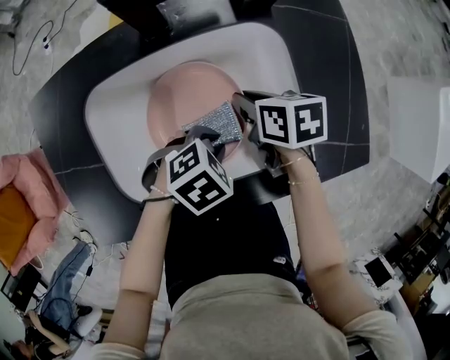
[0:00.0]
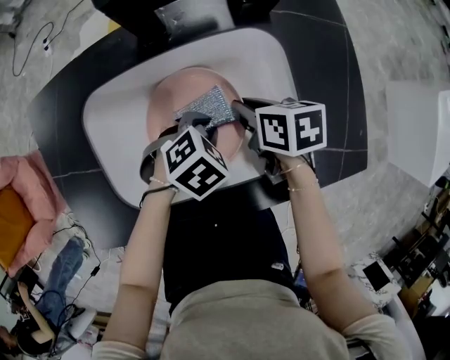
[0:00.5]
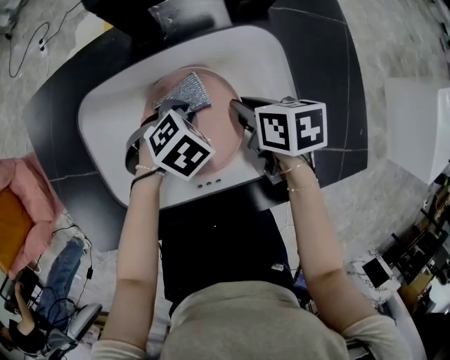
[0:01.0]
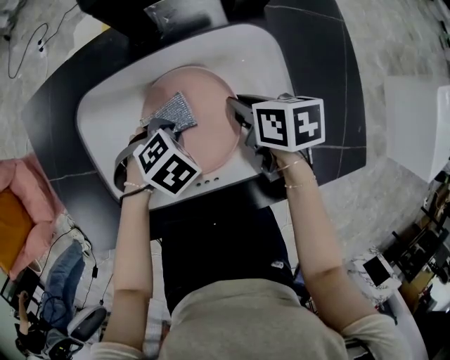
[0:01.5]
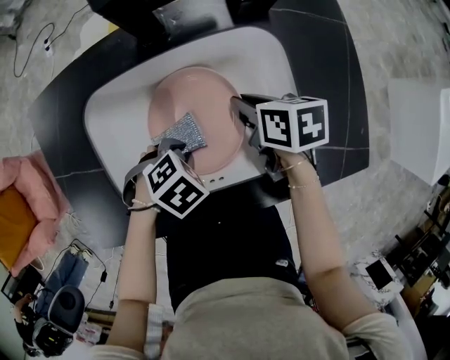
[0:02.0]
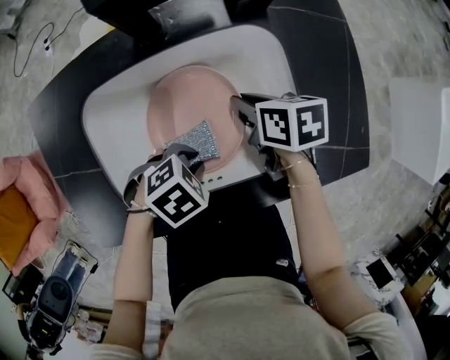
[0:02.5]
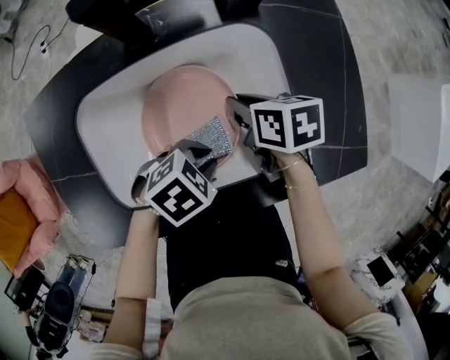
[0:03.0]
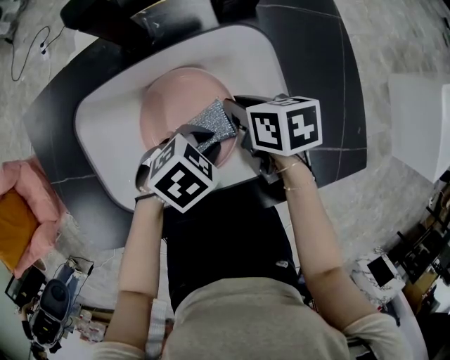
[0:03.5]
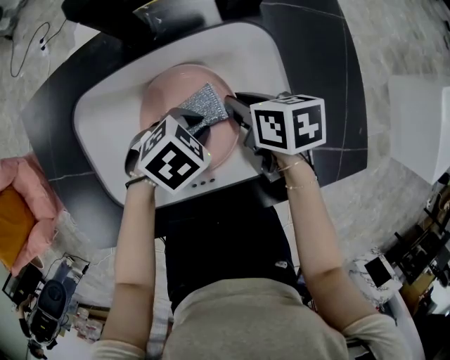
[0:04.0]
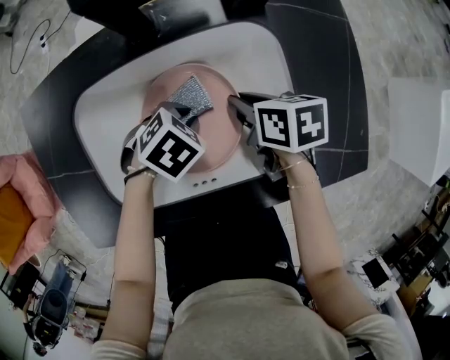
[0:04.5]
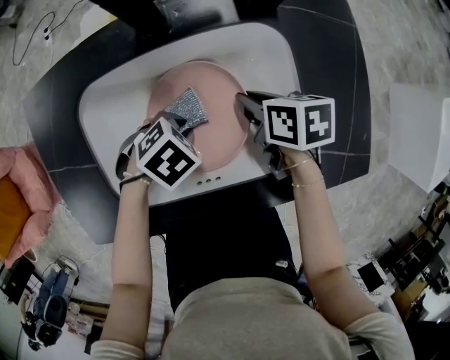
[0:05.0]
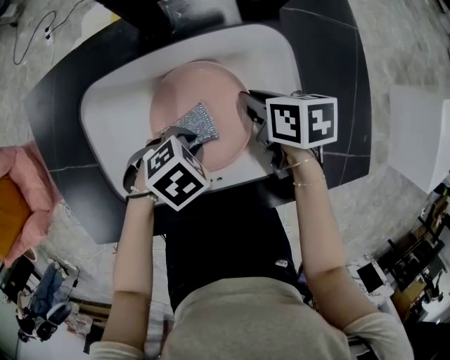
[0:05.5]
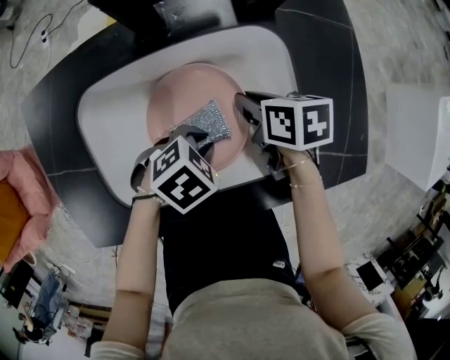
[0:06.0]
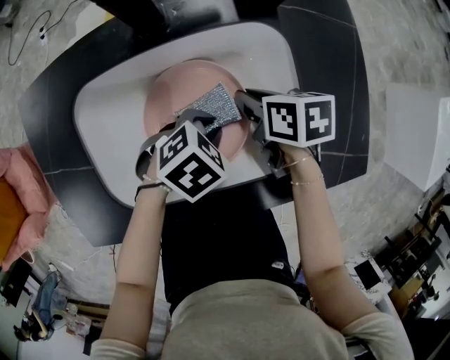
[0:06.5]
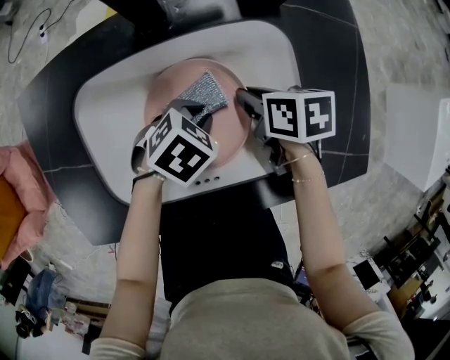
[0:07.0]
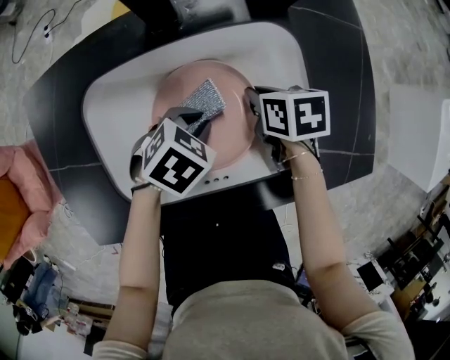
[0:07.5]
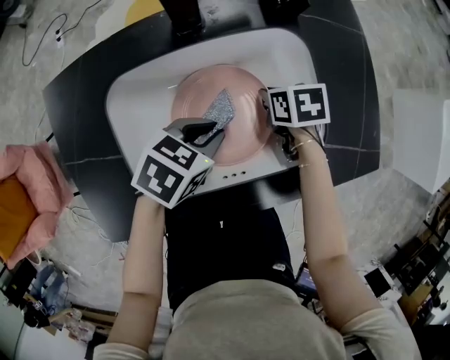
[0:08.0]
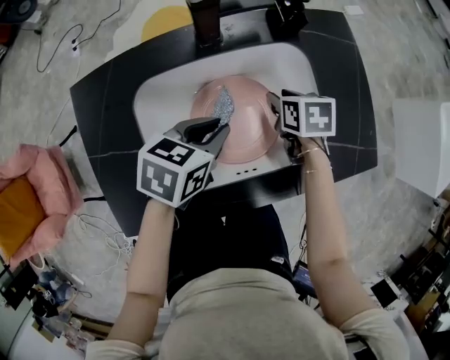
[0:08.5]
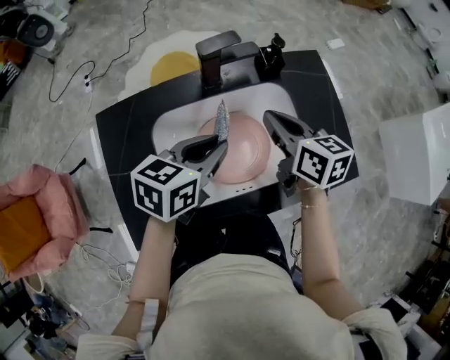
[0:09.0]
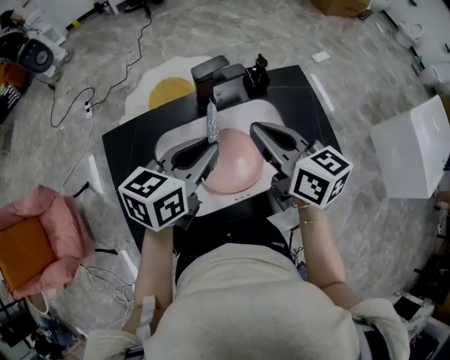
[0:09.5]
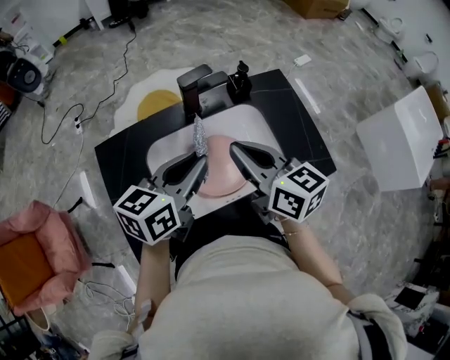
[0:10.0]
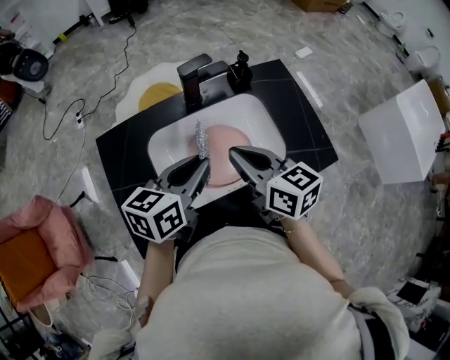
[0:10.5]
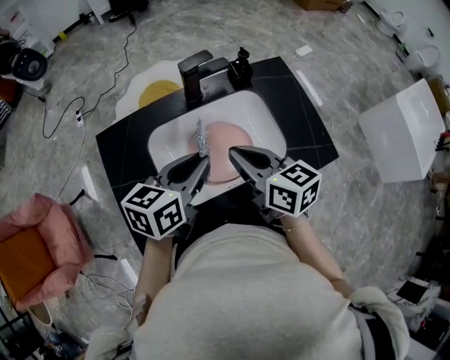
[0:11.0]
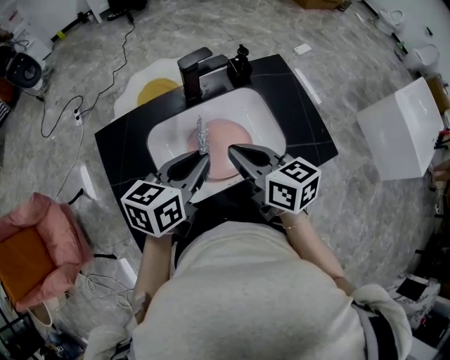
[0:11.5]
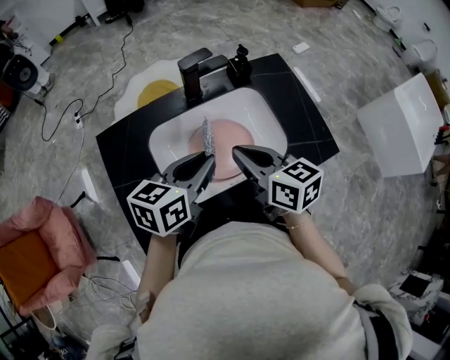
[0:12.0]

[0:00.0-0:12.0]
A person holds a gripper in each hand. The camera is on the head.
0:00.0 to 0:02.0: The left gripper ends up approximately 10 cm from where it was.
0:02.0 to 0:04.0: The left gripper ends up roughly 10 cm from where it was.
0:06.0 to 0:08.0: The left gripper is displaced upward by approximately 5 cm, and turns by some 20 degrees.
0:08.0 to 0:10.0: The grippers both shift upward by approximately 30 cm. The right gripper points its fingers approximately 50 degrees further upward, and opens, then closes again, while the left gripper tips its fingers upward by about 40 degrees.
0:10.0 to 0:12.0: The right gripper heads downward, covering about 5 cm. The left gripper moves approximately 5 cm.

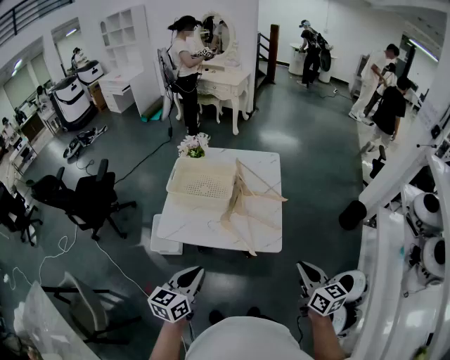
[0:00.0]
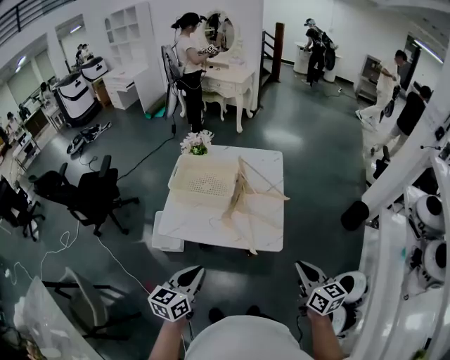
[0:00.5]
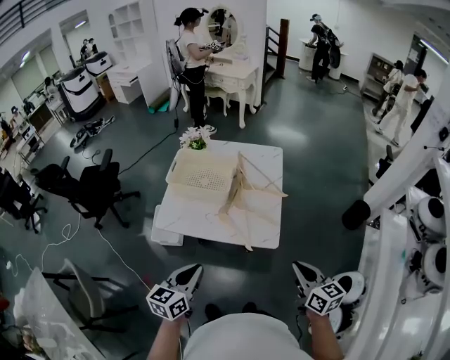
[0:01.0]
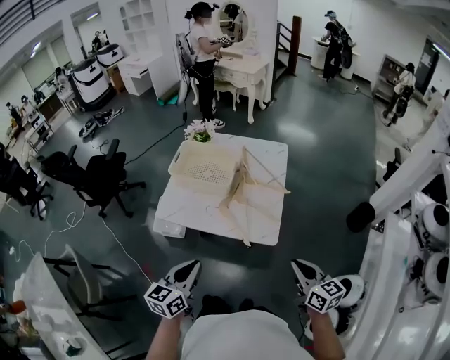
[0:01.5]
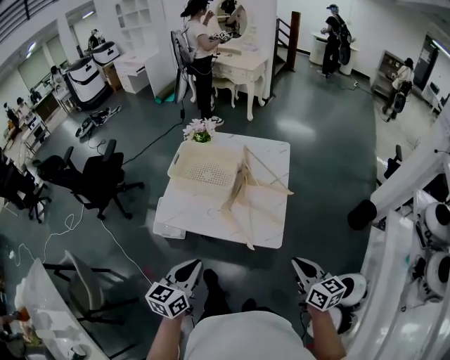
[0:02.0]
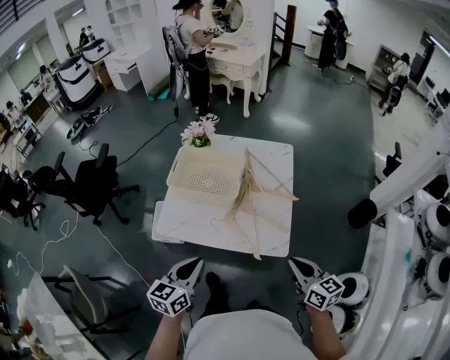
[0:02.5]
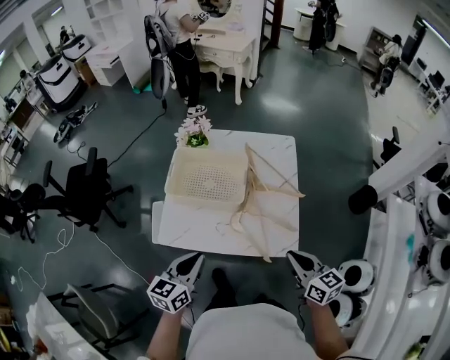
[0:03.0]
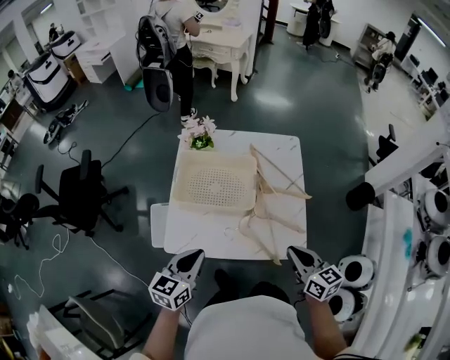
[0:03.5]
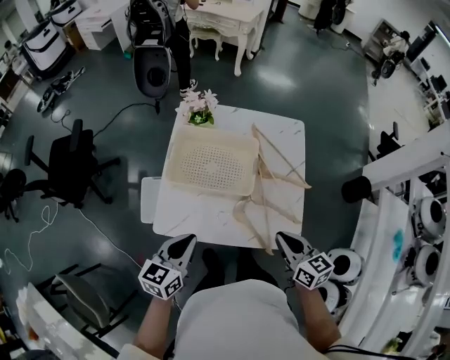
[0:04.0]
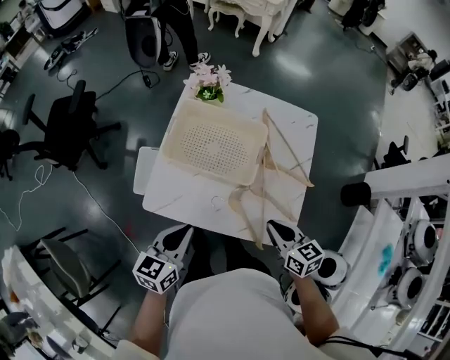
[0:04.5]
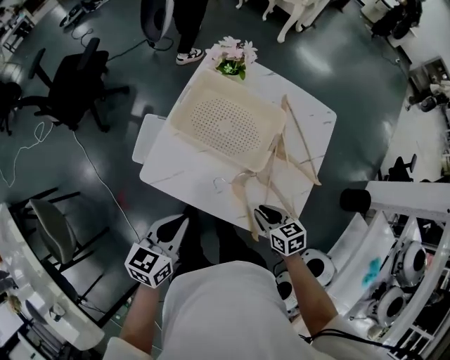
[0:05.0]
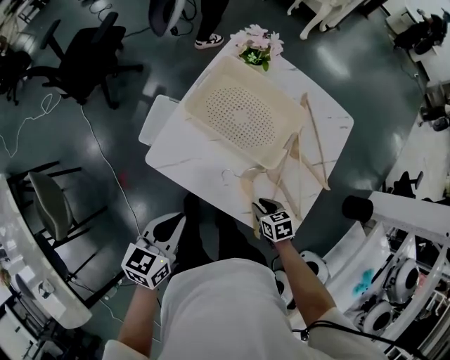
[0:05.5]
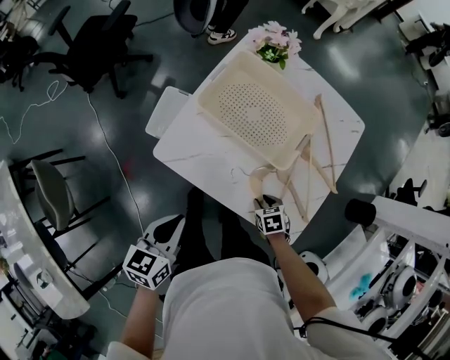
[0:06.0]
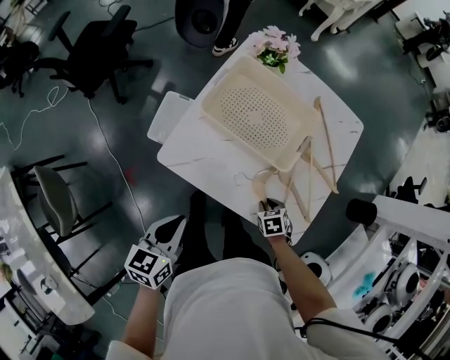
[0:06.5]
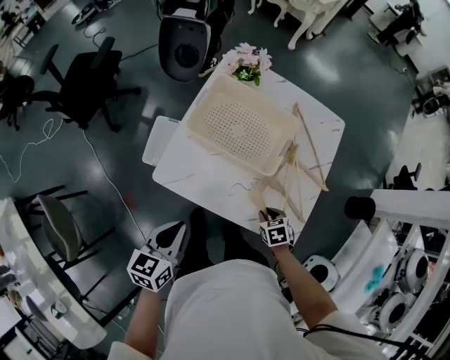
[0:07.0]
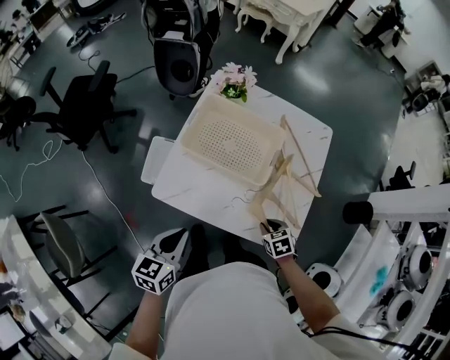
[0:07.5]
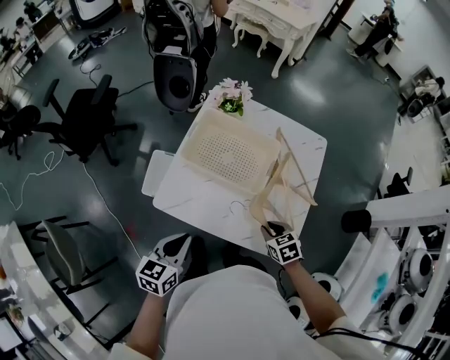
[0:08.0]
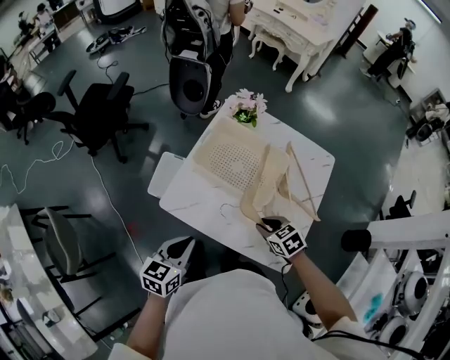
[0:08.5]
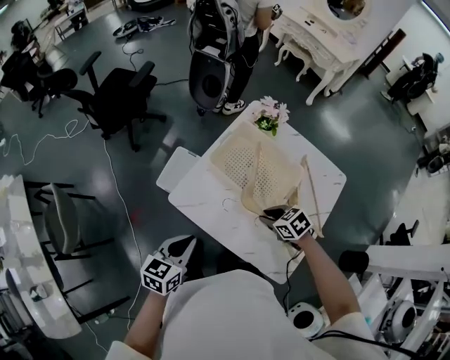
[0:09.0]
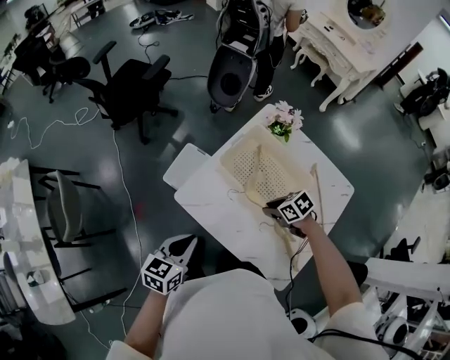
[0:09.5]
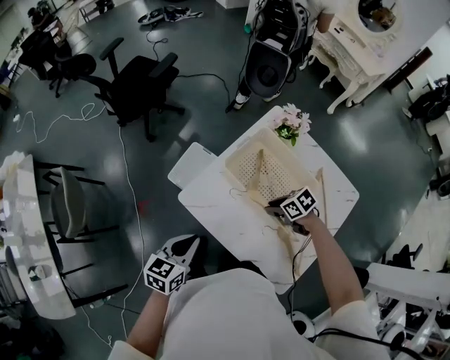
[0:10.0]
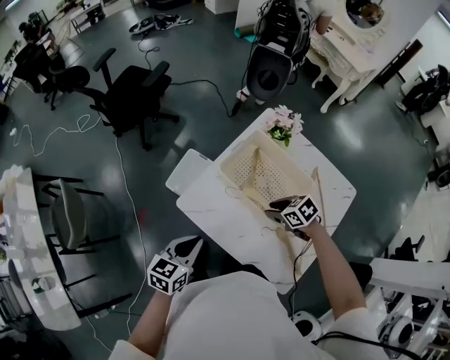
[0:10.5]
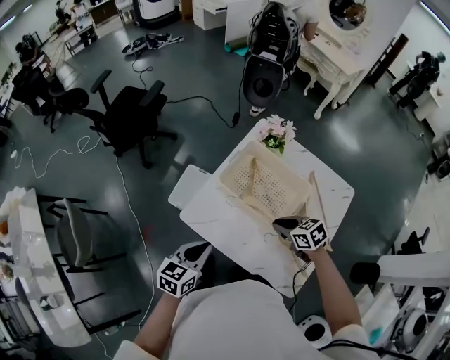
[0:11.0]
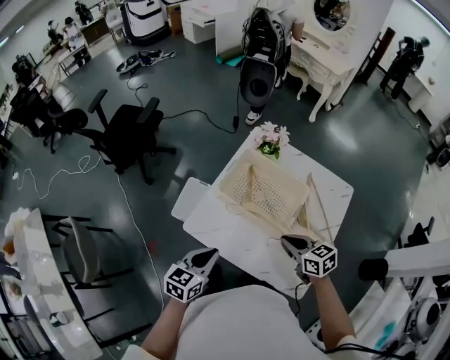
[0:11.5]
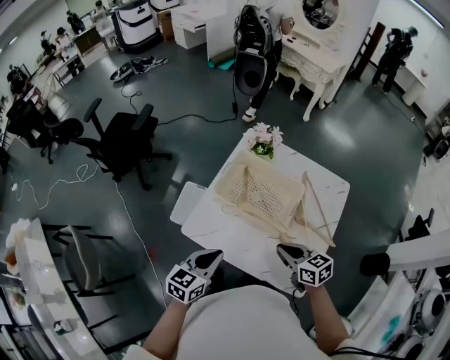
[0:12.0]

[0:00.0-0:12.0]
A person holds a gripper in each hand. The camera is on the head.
0:00.0 to 0:02.0: The right gripper ends up roughly 5 cm from where it was.
0:02.0 to 0:04.0: Both grippers travel together forward and to the left, approximately 30 cm.
0:04.0 to 0:06.0: The left gripper is displaced downward by about 10 cm, and swivels about 30 degrees, while the right gripper heads downward, covering roughly 30 cm, tips its fingers downward by approximately 50 degrees, and opens up.
0:06.0 to 0:08.0: The right gripper goes some 15 cm upward; the left gripper ends up roughly 5 cm from where it was.
0:08.0 to 0:10.0: The right gripper ends up some 20 cm from where it was, and rotates approximately 40 degrees.
0:10.0 to 0:12.0: The left gripper ends up some 10 cm from where it was, and rotates approximately 20 degrees. The right gripper shifts by about 20 cm, and rotates roughly 50 degrees.

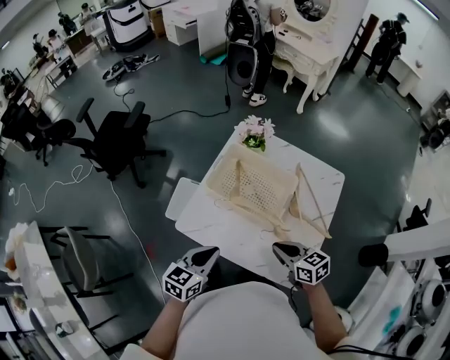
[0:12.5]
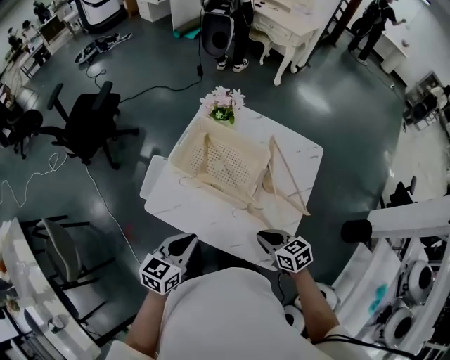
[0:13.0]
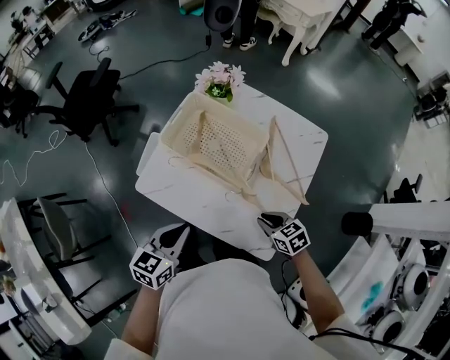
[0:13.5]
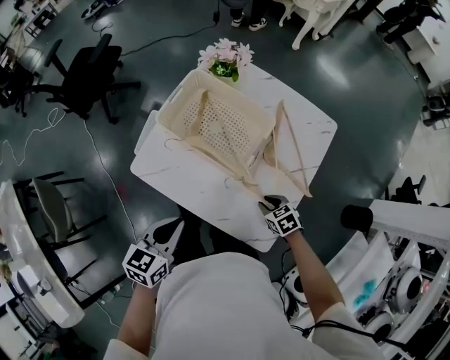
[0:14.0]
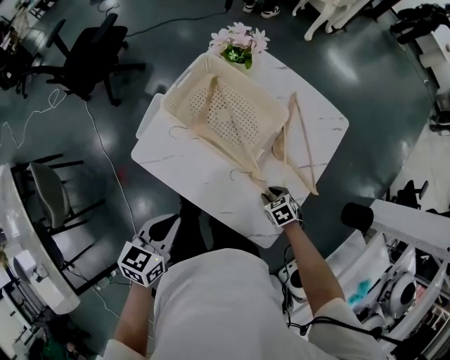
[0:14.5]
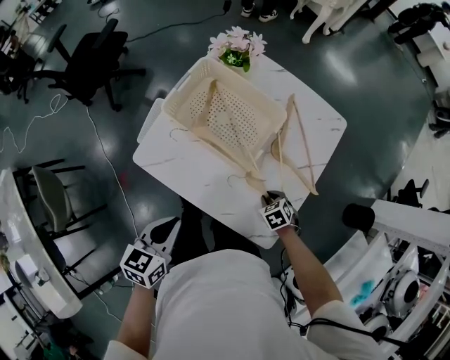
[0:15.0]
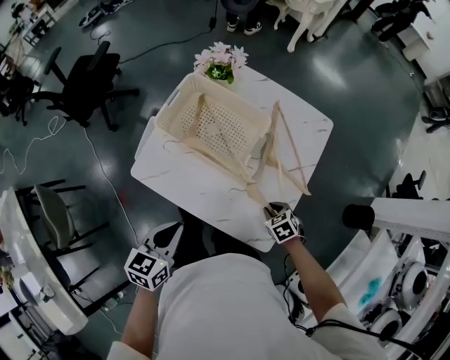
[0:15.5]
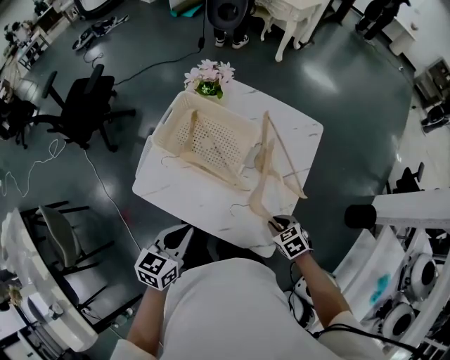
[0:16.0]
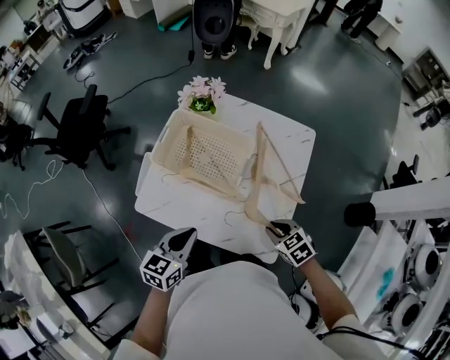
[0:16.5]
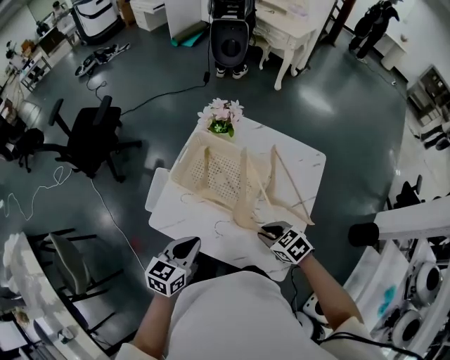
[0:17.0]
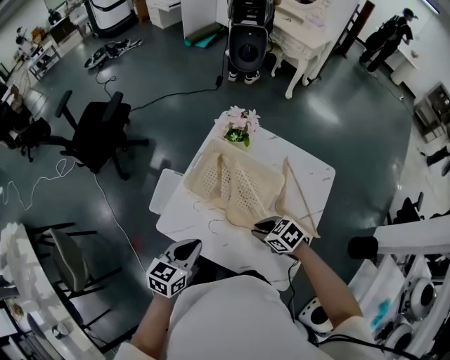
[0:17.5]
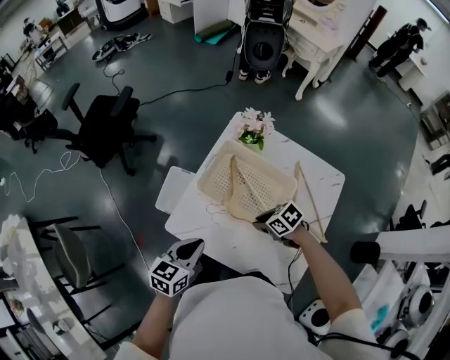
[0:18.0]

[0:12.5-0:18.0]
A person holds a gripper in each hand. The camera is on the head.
0:12.5 to 0:14.5: The left gripper goes roughly 5 cm downward. The right gripper goes about 30 cm downward and to the right, tilts its fingers about 40 degrees downward, and opens its fingers.
0:14.5 to 0:16.0: The left gripper changes place by roughly 5 cm. The right gripper moves upward and backward, about 15 cm.
0:16.0 to 0:18.0: The left gripper ends up approximately 15 cm from where it was, while the right gripper shifts by some 30 cm, and changes its angle by roughly 30 degrees.
